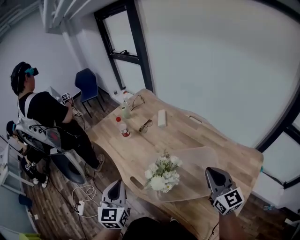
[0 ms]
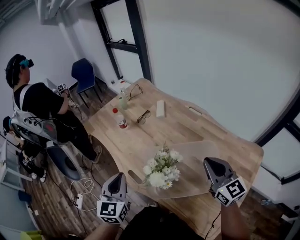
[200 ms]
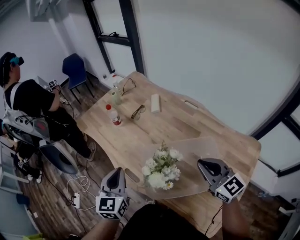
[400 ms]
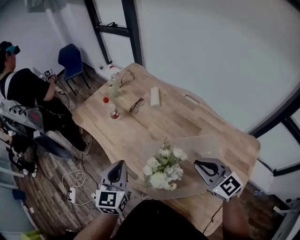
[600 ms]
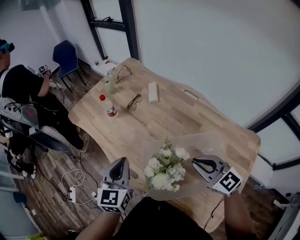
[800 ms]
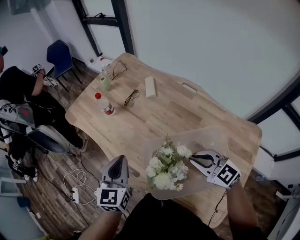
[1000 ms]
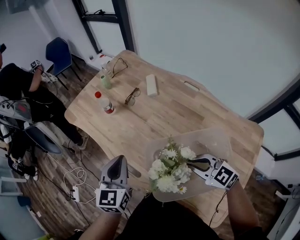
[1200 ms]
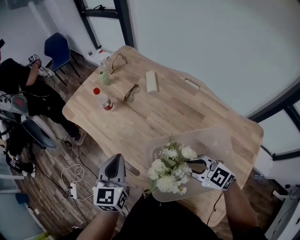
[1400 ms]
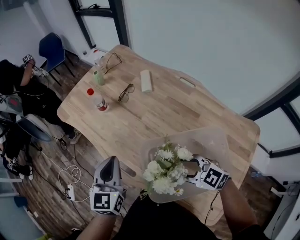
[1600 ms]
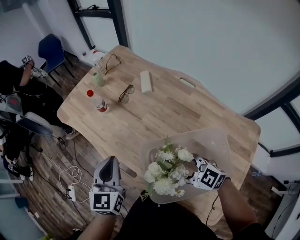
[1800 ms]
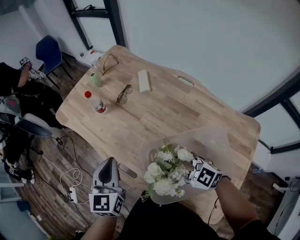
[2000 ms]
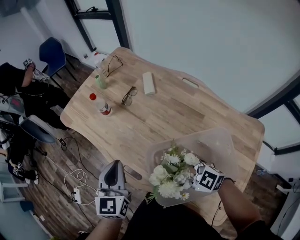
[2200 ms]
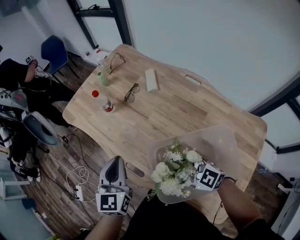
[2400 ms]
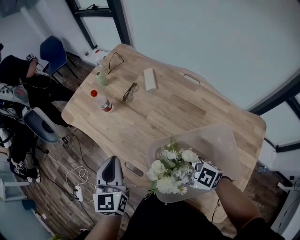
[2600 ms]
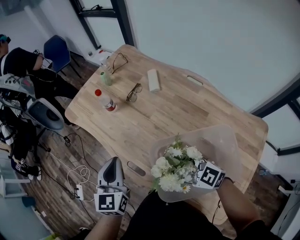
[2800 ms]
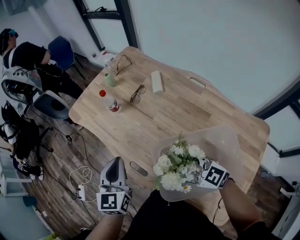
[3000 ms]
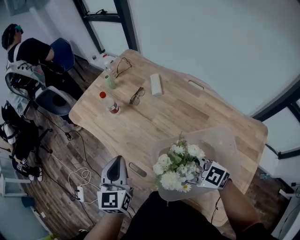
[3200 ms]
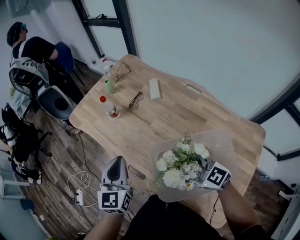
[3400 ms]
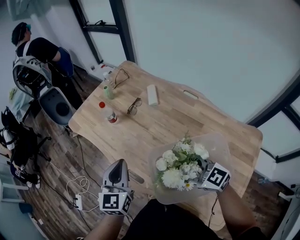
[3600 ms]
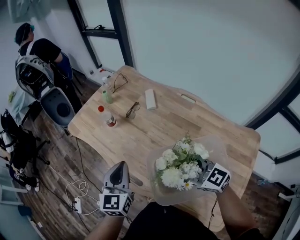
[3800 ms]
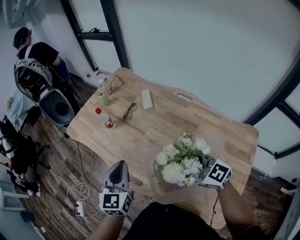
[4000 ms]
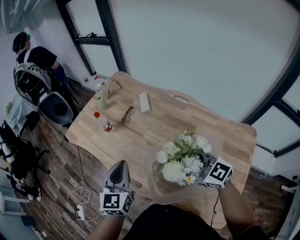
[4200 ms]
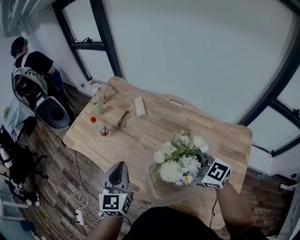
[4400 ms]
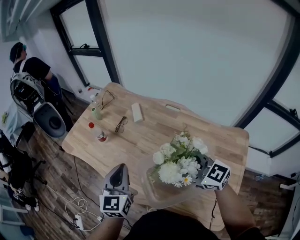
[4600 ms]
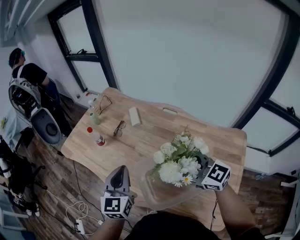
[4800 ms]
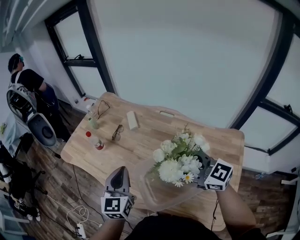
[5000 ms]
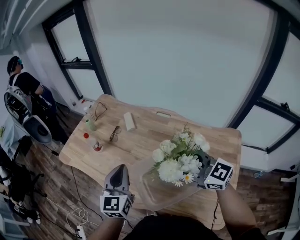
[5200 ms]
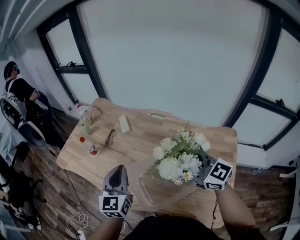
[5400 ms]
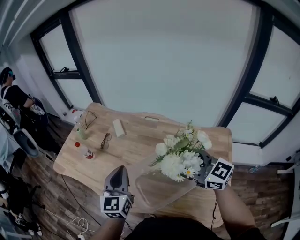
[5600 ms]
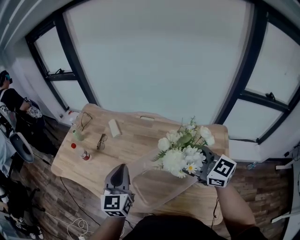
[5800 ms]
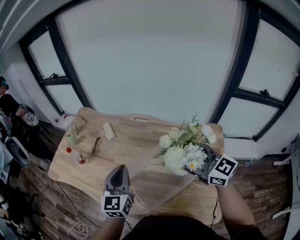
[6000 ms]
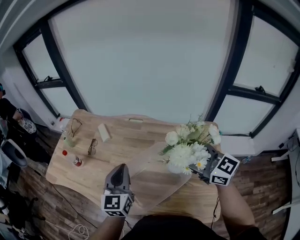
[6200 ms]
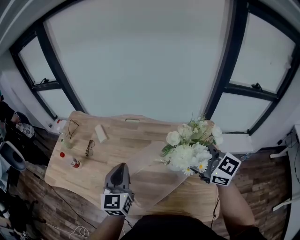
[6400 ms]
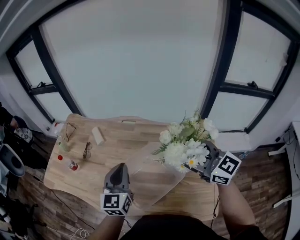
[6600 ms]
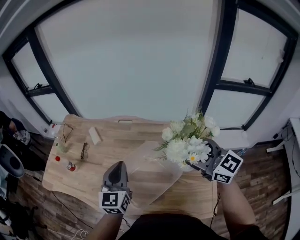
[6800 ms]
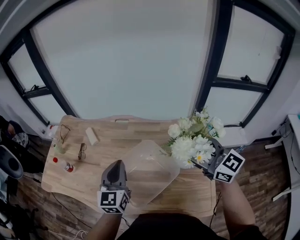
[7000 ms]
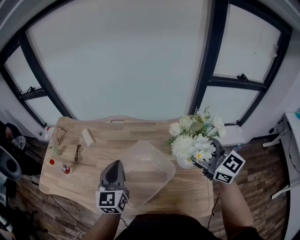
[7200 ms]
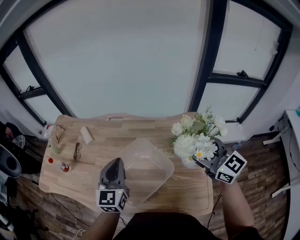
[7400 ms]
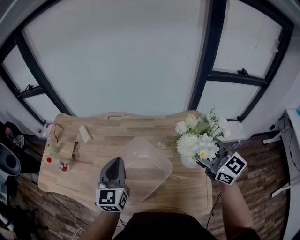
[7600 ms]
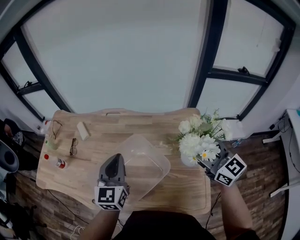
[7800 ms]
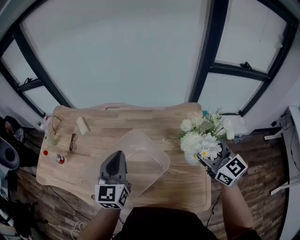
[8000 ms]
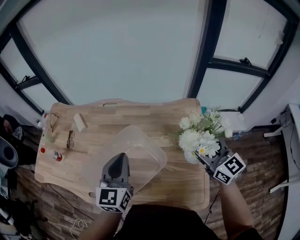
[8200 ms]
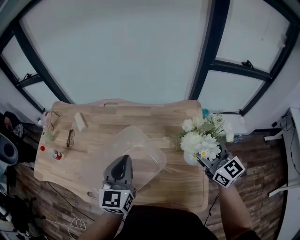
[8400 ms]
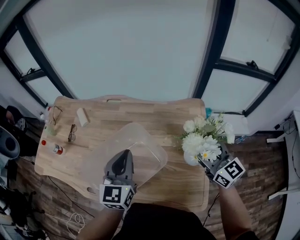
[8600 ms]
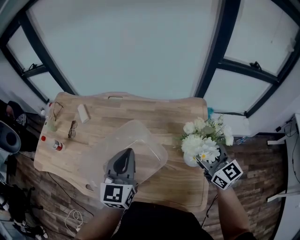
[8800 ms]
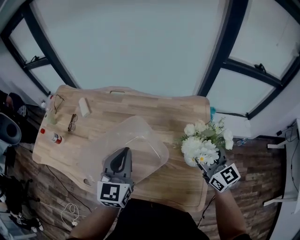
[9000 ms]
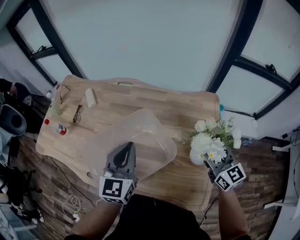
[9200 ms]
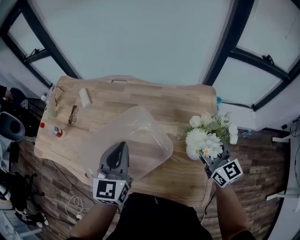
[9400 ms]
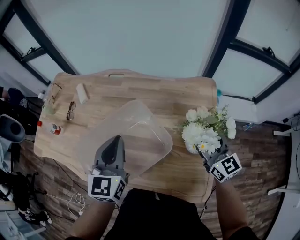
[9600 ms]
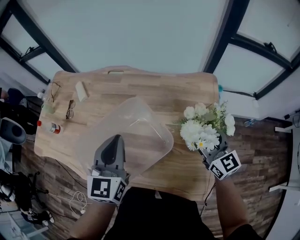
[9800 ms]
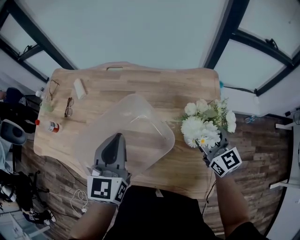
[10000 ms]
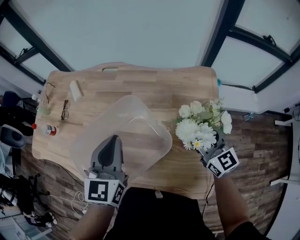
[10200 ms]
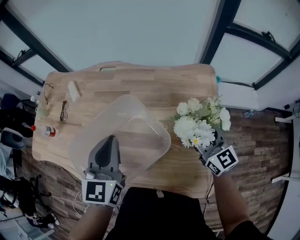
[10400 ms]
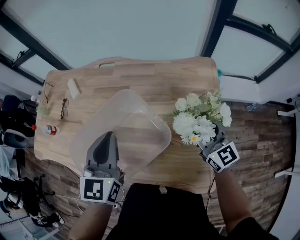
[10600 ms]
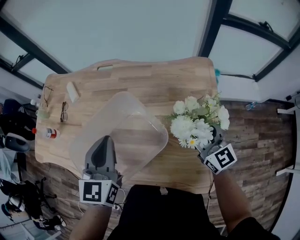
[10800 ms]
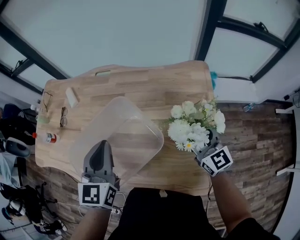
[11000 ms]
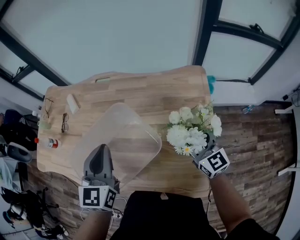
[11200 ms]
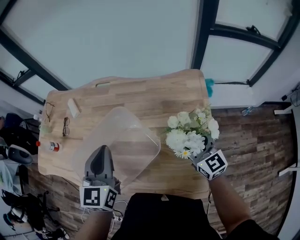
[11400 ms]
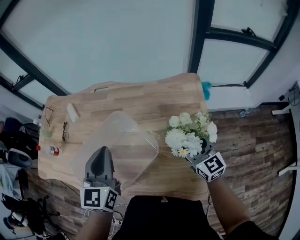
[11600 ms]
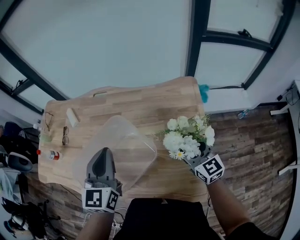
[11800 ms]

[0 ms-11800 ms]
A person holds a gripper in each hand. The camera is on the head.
0 ms to 1400 ms: The right gripper shifts approximately 20 cm downward and to the left, and changes its angle by roughly 50 degrees; the left gripper goes some 15 cm forward and downward.
1400 ms to 3000 ms: The right gripper moves to the left, some 5 cm, and opens.
3000 ms to 4400 ms: The right gripper travels upward and to the right by some 10 cm, while the left gripper heads to the right, covering about 5 cm.
4400 ms to 6000 ms: The left gripper shifts roughly 15 cm to the right. The right gripper travels to the right, upward and backward by about 15 cm, and changes its angle by some 30 degrees.
6000 ms to 7400 ms: The right gripper moves to the right and backward, approximately 15 cm, while the left gripper shifts about 10 cm to the right.
7400 ms to 8800 ms: The left gripper is displaced to the right by some 10 cm. Meanwhile the right gripper heads downward and to the right, covering approximately 10 cm.
8800 ms to 10400 ms: The right gripper is displaced downward by approximately 10 cm.
10400 ms to 11800 ms: The grippers move only a little.

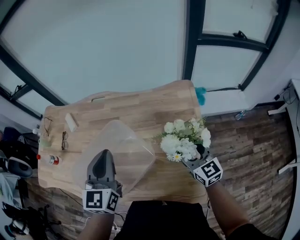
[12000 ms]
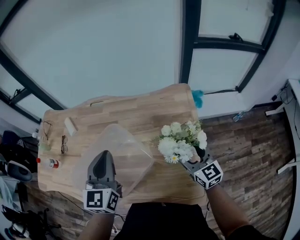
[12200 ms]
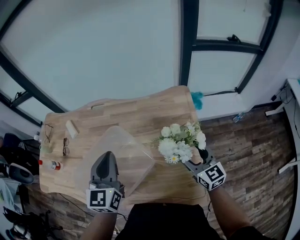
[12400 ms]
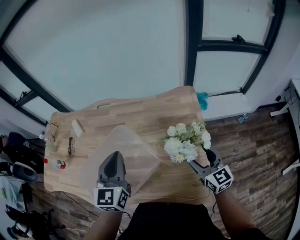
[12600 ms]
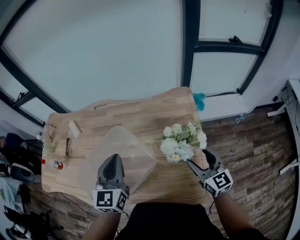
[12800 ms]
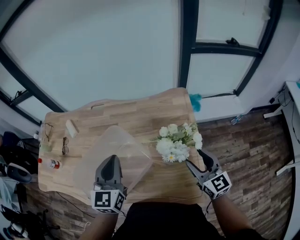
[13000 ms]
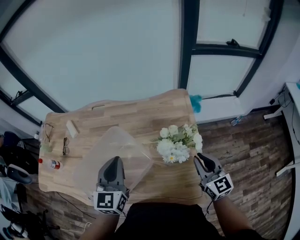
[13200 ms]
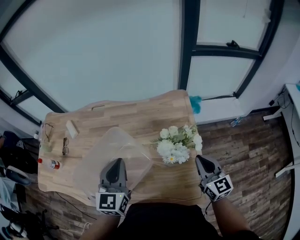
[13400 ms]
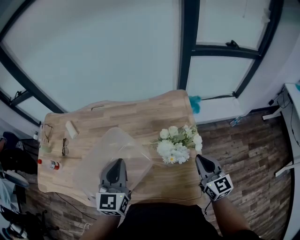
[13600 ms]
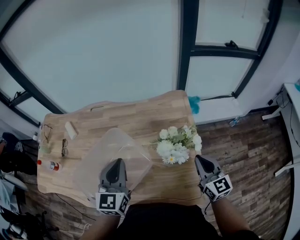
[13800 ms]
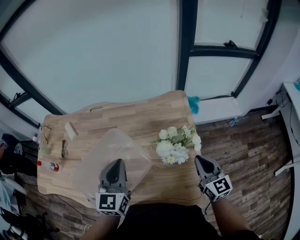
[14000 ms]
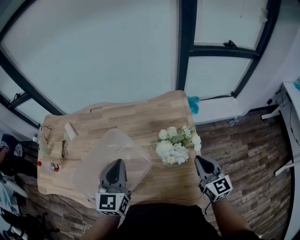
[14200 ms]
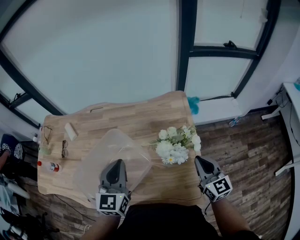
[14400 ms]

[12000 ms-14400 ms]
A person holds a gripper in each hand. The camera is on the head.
12000 ms to 13200 ms: The right gripper shifts roughly 10 cm backward and to the right, and closes its fingers.
13200 ms to 14400 ms: Both grippers stay about where they are.

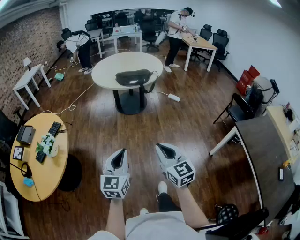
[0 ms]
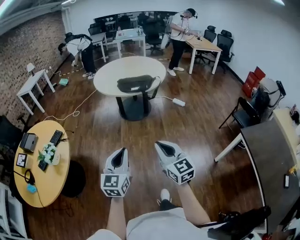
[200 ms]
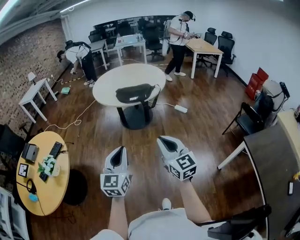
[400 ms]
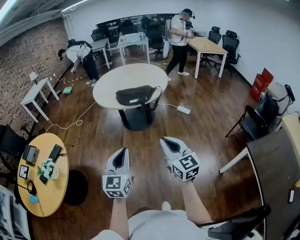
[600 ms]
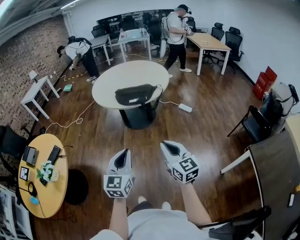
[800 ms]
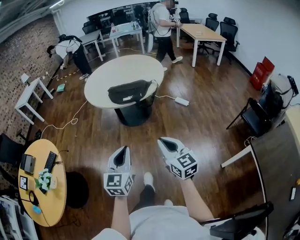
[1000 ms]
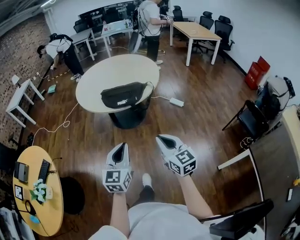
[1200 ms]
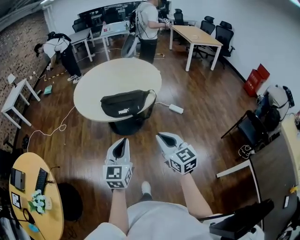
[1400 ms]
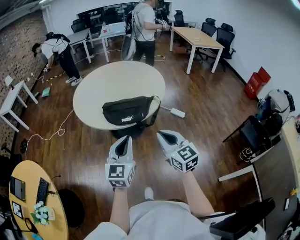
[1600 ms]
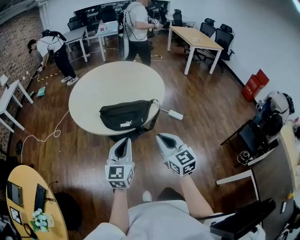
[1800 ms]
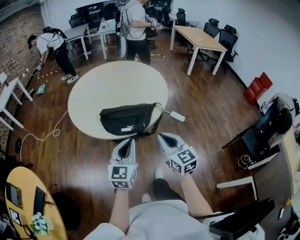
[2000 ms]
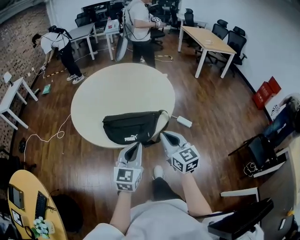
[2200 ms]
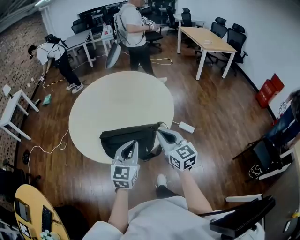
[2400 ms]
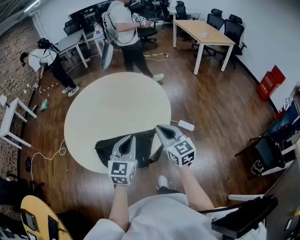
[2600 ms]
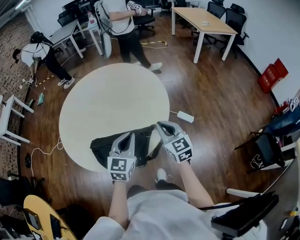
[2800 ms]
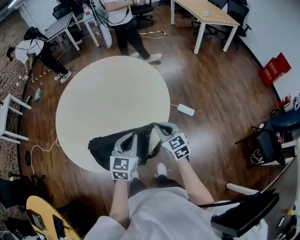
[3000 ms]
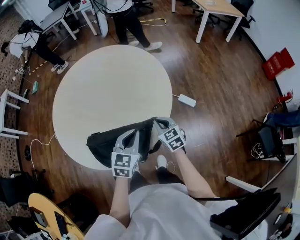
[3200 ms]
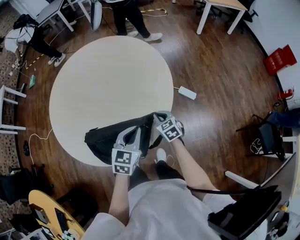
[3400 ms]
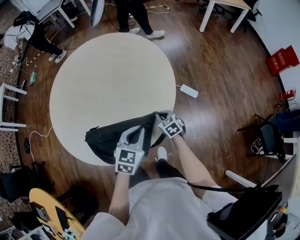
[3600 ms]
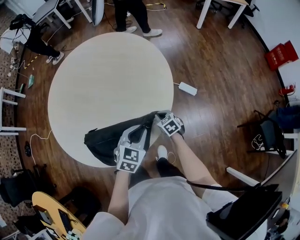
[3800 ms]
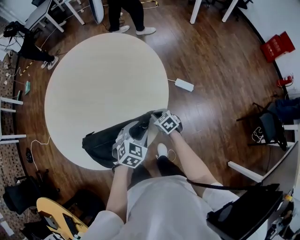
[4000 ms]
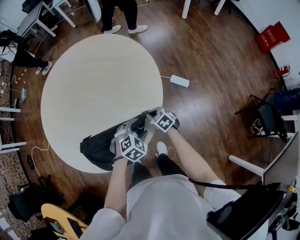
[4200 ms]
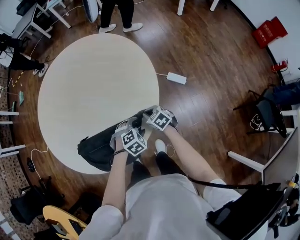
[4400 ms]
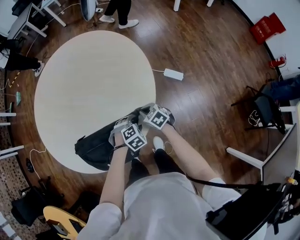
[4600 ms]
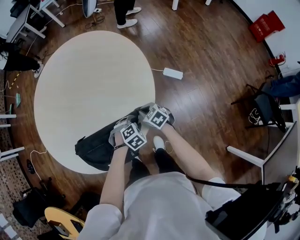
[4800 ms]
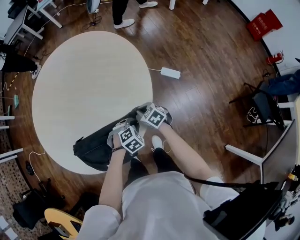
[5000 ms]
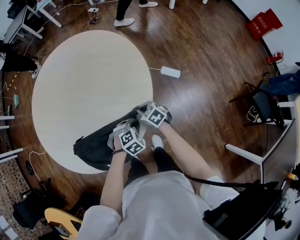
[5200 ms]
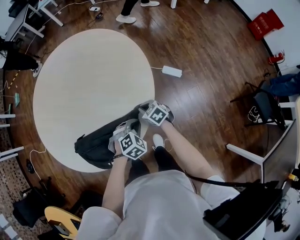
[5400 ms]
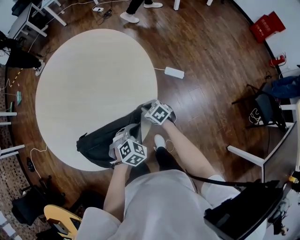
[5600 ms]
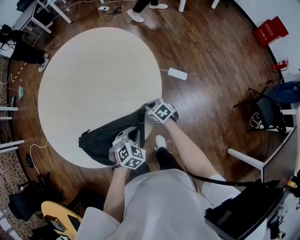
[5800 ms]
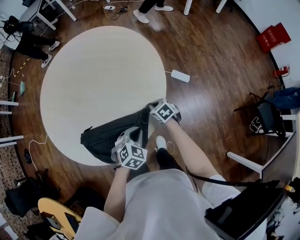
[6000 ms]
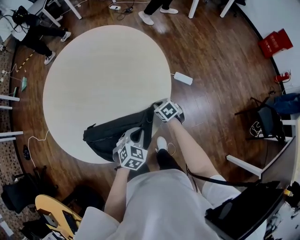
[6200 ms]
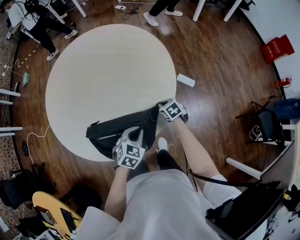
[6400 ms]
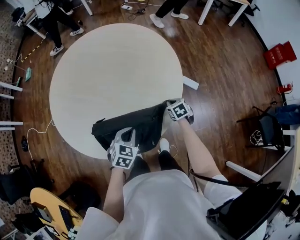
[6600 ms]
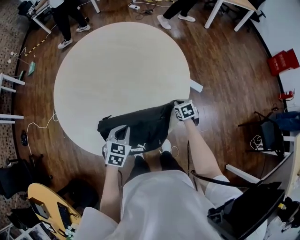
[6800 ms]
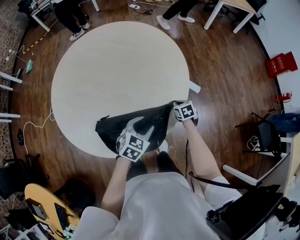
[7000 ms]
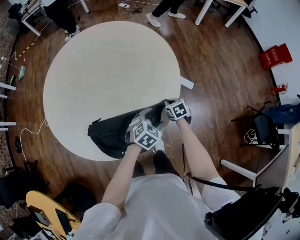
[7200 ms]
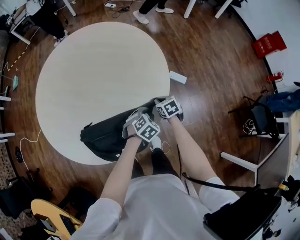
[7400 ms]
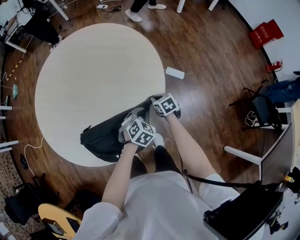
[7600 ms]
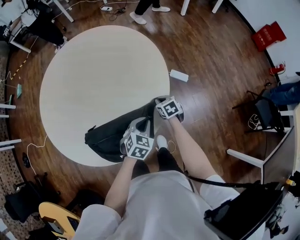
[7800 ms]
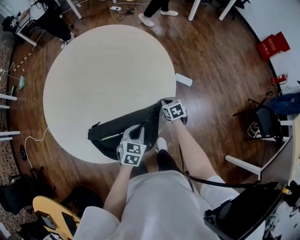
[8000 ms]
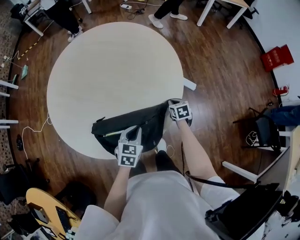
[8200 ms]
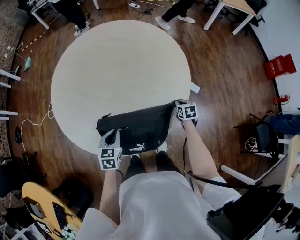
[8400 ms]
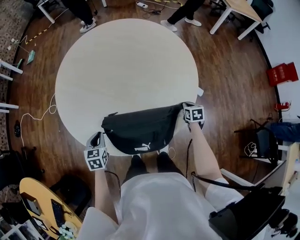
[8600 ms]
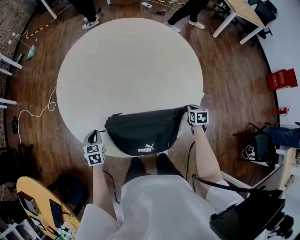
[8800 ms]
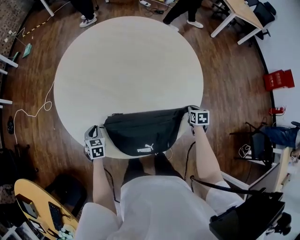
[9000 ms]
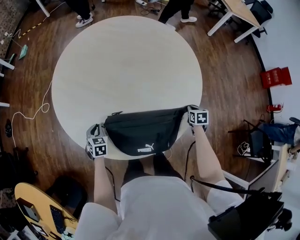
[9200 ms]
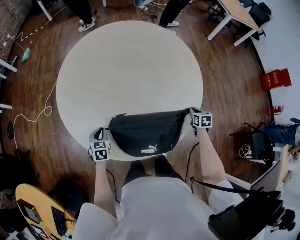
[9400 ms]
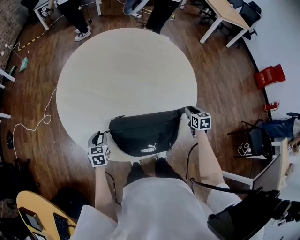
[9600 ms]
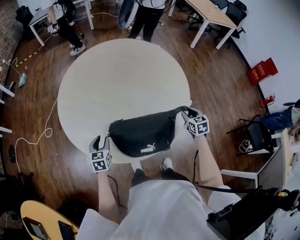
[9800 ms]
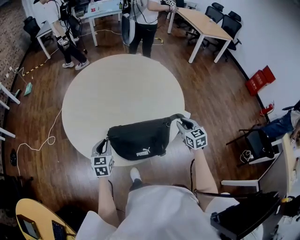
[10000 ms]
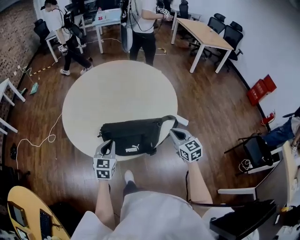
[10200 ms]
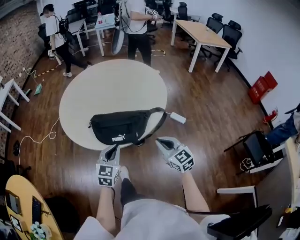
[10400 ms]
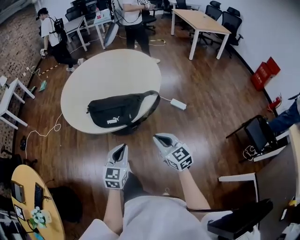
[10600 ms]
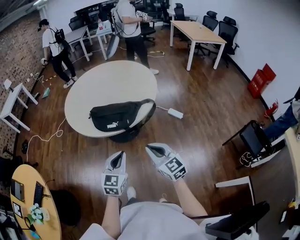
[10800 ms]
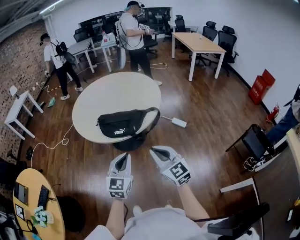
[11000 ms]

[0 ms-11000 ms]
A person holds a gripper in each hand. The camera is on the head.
0 ms to 1600 ms: The pair of grippers is taken forward, approximately 60 cm.
1600 ms to 3200 ms: The two grippers travel together, forward, some 50 cm. The left gripper turns by roughly 30 degrees, while the right gripper moves downward, about 25 cm, and swivels about 20 degrees.
3200 ms to 4800 ms: The left gripper goes roughly 25 cm downward, tilts its fingers approximately 40 degrees downward, and opens up; the right gripper travels downward by some 15 cm, and rotates some 20 degrees.
4800 ms to 6200 ms: The left gripper goes approximately 15 cm upward, to the left and backward, swivels approximately 30 degrees, and closes its fingers.
6200 ms to 7800 ms: The left gripper travels to the left and back again, approximately 15 cm each way, and opens, then closes again.
7800 ms to 9400 ms: The left gripper is displaced to the left by roughly 40 cm, and changes its angle by approximately 40 degrees.
9400 ms to 11000 ms: The right gripper moves backward and upward, some 60 cm, angles its fingers upward, by about 50 degrees, and opens and closes again. Meanwhile the left gripper travels backward, upward and to the right by roughly 70 cm, angles its fingers upward, by approximately 40 degrees, and opens, then closes once more.
